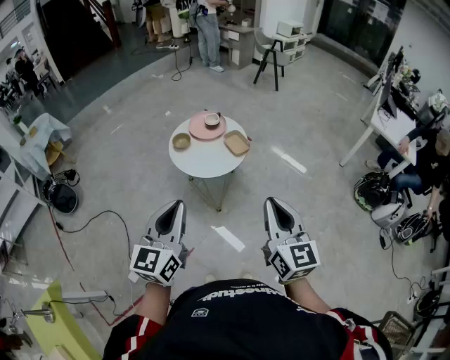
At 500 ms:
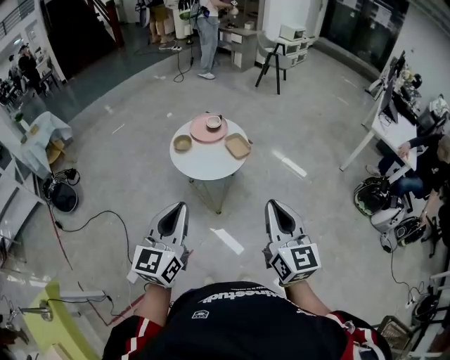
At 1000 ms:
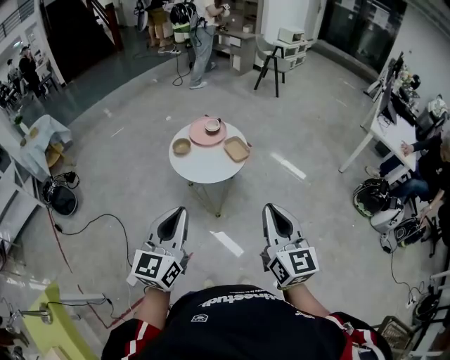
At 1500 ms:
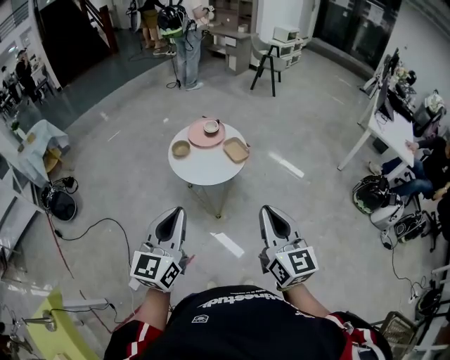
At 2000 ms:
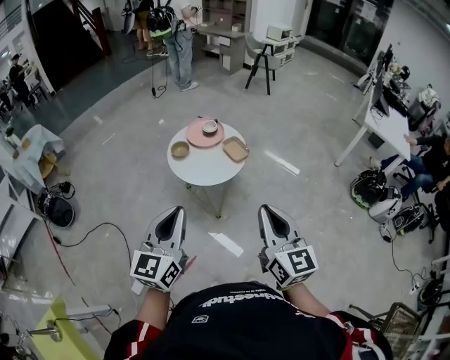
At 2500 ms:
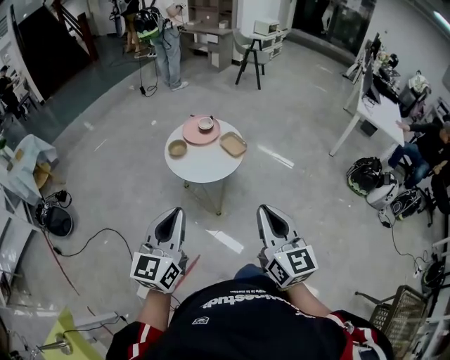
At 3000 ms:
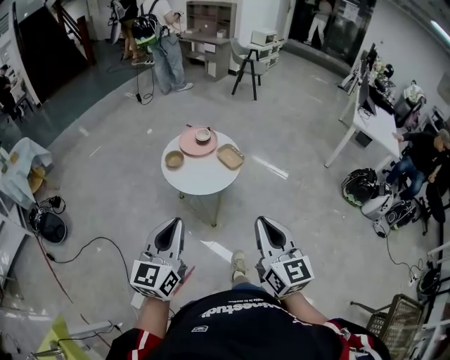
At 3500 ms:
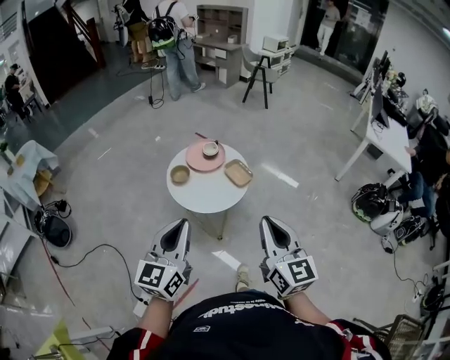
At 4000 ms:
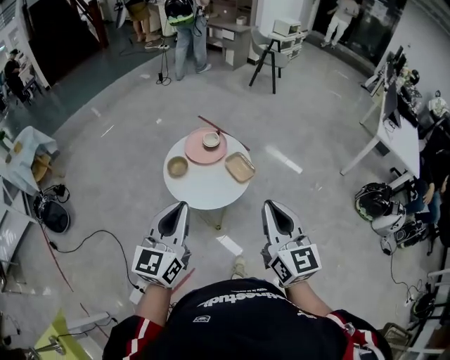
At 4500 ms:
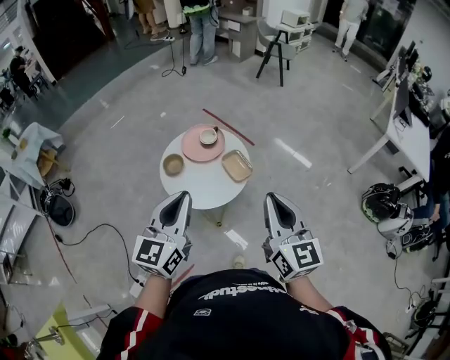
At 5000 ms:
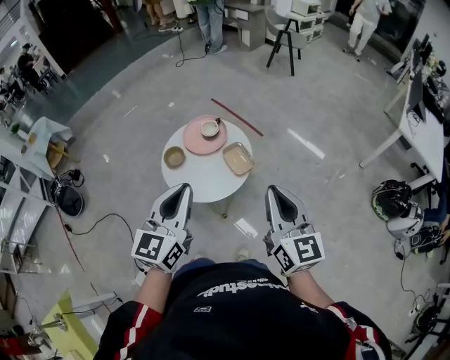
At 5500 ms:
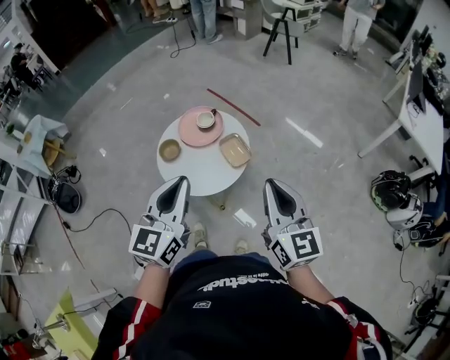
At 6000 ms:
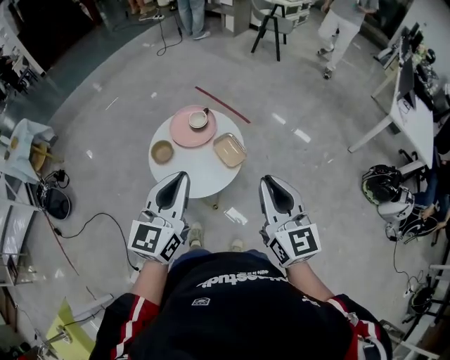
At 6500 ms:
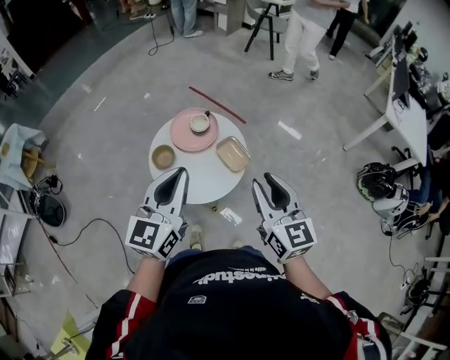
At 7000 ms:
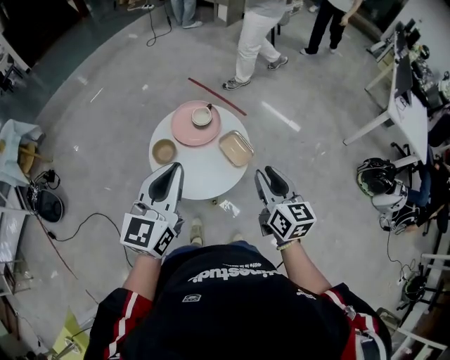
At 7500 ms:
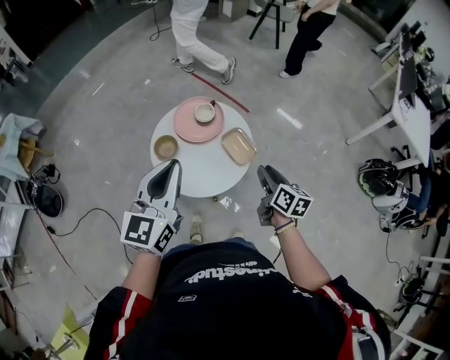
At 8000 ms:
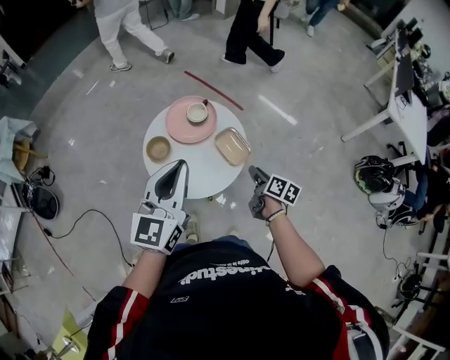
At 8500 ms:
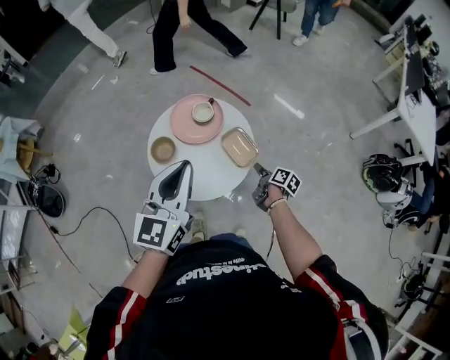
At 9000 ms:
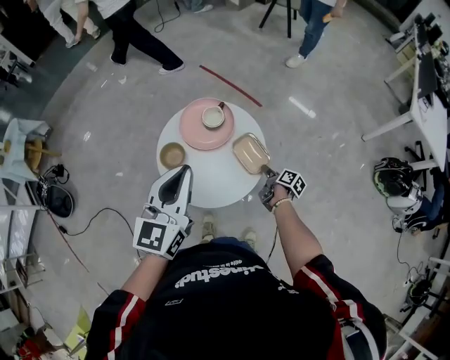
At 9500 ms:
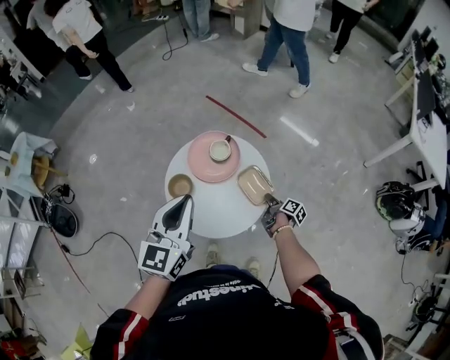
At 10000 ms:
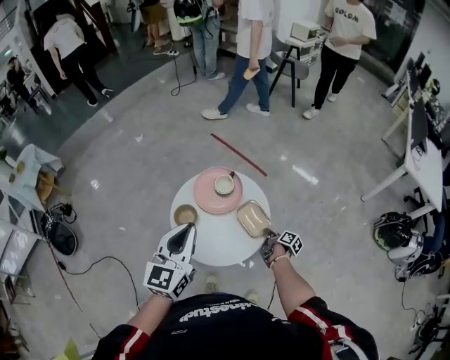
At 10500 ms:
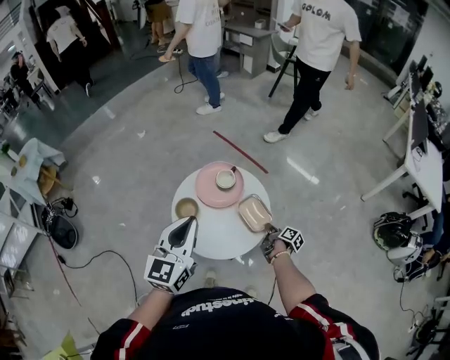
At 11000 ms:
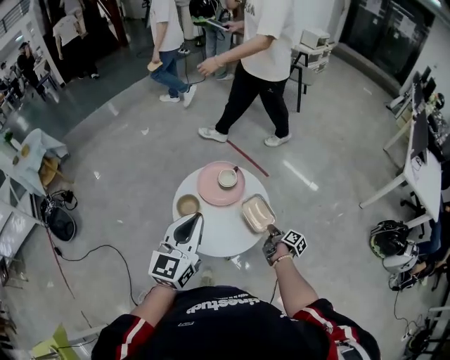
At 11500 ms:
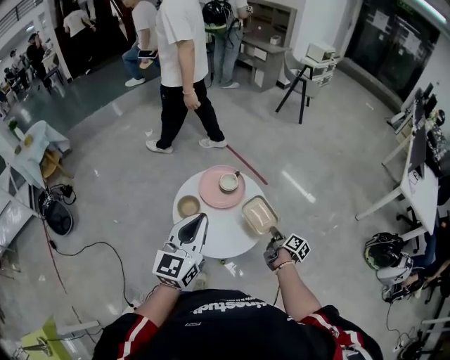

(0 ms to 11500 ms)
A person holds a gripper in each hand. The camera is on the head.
0 ms - 2000 ms: Both grippers travel together to the left, about 5 cm.
2000 ms - 4000 ms: The grippers both shift forward by roughly 20 cm.
4000 ms - 6000 ms: The two grippers go about 15 cm forward and to the right.
6000 ms - 7500 ms: The left gripper heads to the left and forward, covering approximately 15 cm; the right gripper moves downward and forward, approximately 25 cm, swivels approximately 40 degrees, and opens up.
7500 ms - 9500 ms: The left gripper travels forward by about 10 cm; the right gripper shifts approximately 25 cm downward and forward, and twists about 40 degrees clockwise, seen from behind.
9500 ms - 11500 ms: The left gripper is displaced backward and upward by about 10 cm; the right gripper travels upward and backward by some 15 cm.

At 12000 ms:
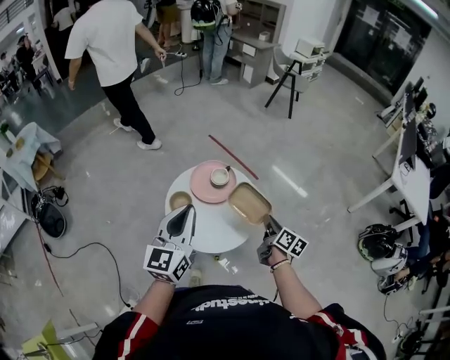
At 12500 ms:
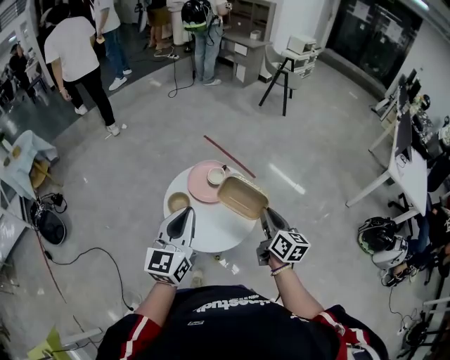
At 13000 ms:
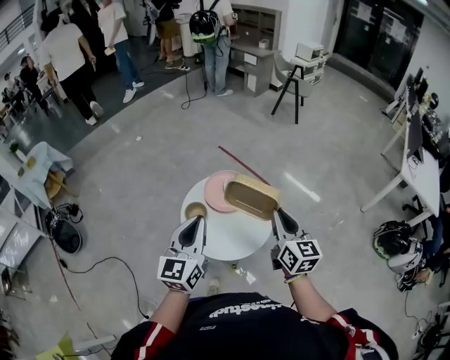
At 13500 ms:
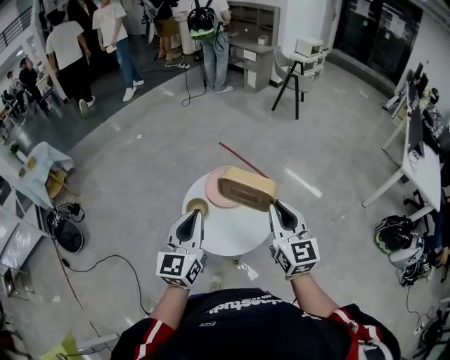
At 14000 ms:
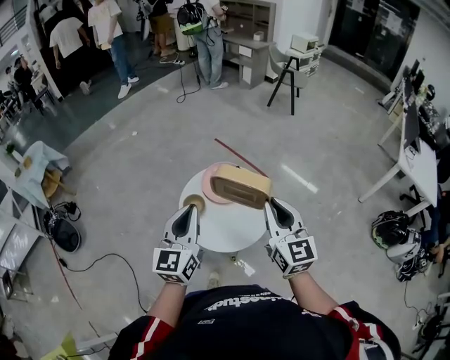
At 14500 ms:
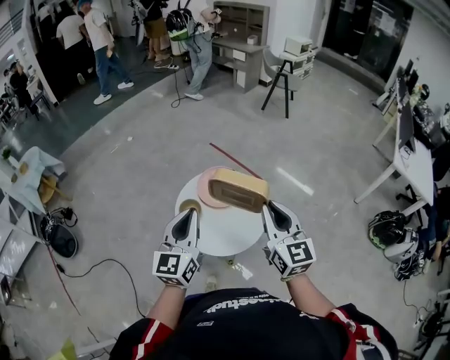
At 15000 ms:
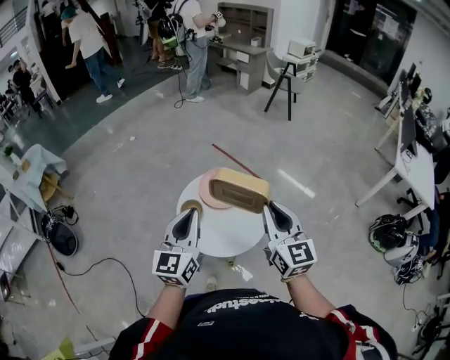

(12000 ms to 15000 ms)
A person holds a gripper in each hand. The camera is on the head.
12000 ms - 13500 ms: The right gripper moves upward and to the left, approximately 25 cm, and rolls counterclockwise, seen from behind, by roughly 50 degrees.
13500 ms - 15000 ms: Both grippers stay put.

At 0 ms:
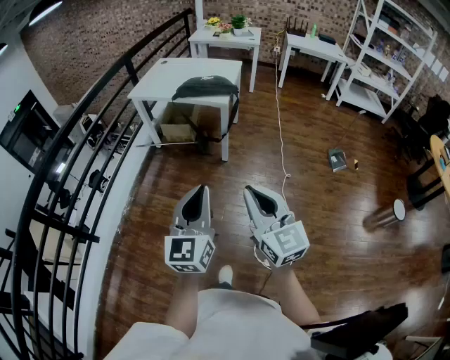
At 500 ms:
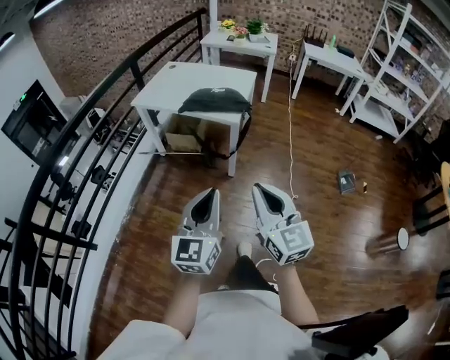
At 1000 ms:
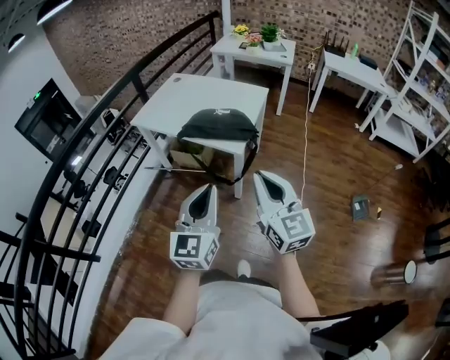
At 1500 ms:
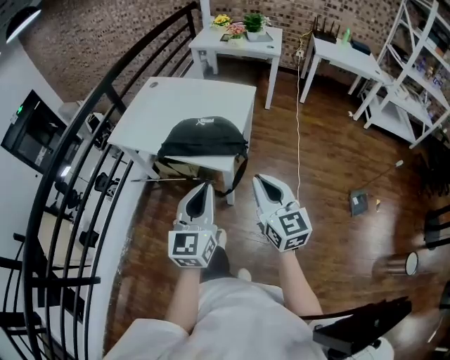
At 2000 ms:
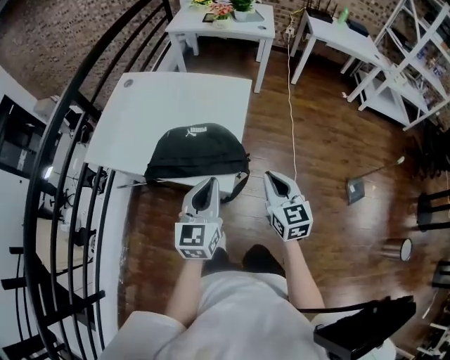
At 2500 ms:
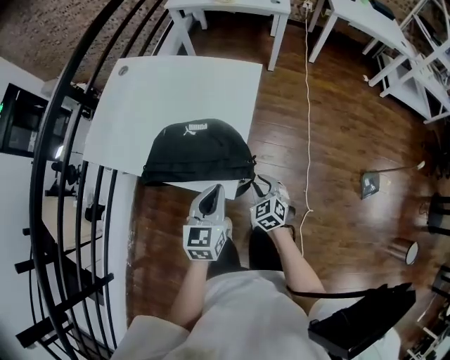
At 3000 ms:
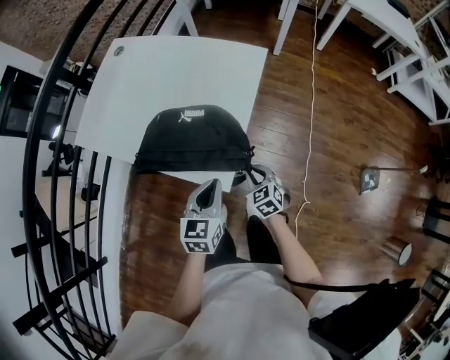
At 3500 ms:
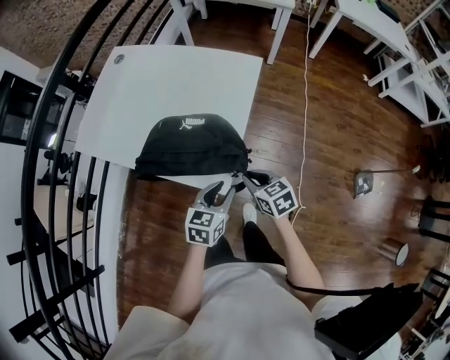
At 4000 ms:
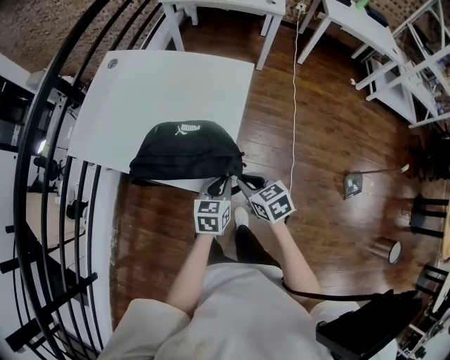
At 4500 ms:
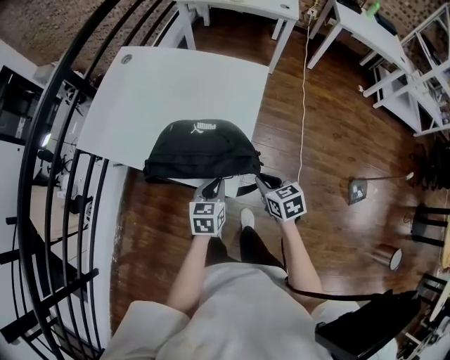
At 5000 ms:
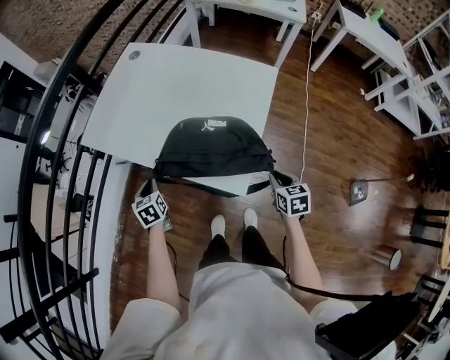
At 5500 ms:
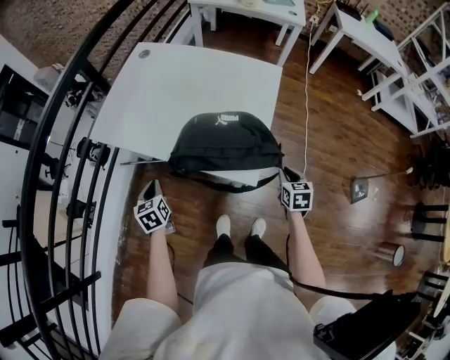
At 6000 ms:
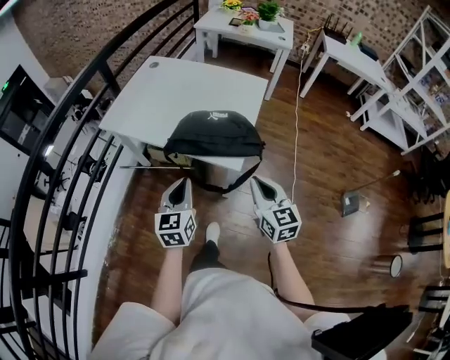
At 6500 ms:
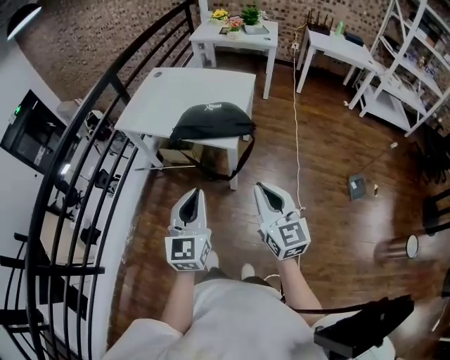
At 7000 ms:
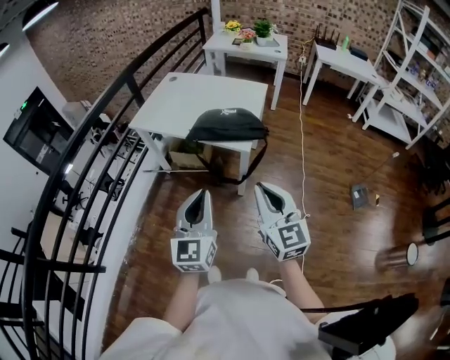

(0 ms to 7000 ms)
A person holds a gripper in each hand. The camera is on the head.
0 ms - 2000 ms: Both grippers are carried forward, approximately 70 cm. The right gripper turns by about 20 degrees.
2000 ms - 3500 ms: The grippers both shift downward by about 15 cm. The left gripper swivels roughly 30 degrees, and opens up. The right gripper rotates some 40 degrees.
3500 ms - 5000 ms: The left gripper shifts about 35 cm to the left, changes its angle by approximately 40 degrees, and closes.
5000 ms - 7000 ms: The left gripper is displaced backward and upward by some 60 cm, and points its fingers approximately 50 degrees further upward, while the right gripper shifts about 50 cm backward, upward and to the left, and points its fingers roughly 50 degrees further upward.

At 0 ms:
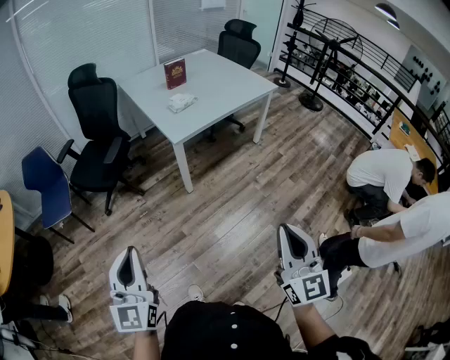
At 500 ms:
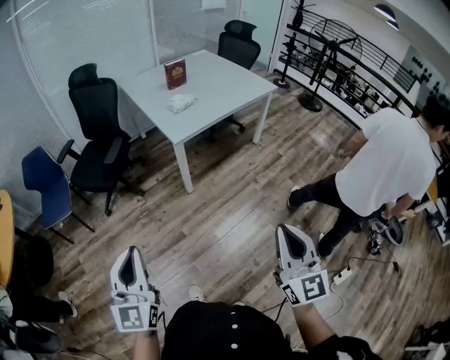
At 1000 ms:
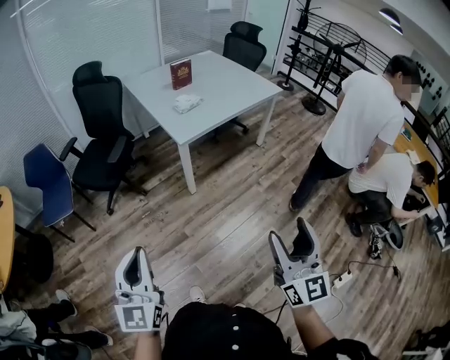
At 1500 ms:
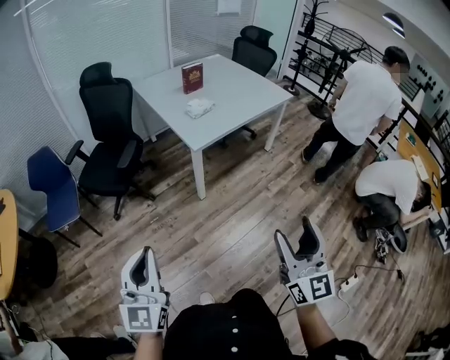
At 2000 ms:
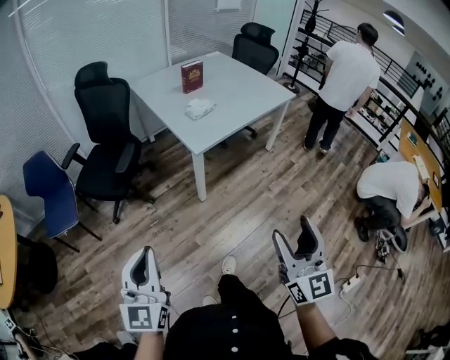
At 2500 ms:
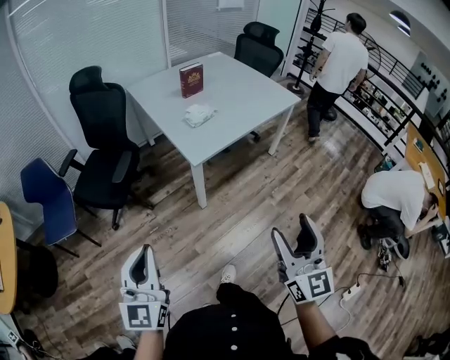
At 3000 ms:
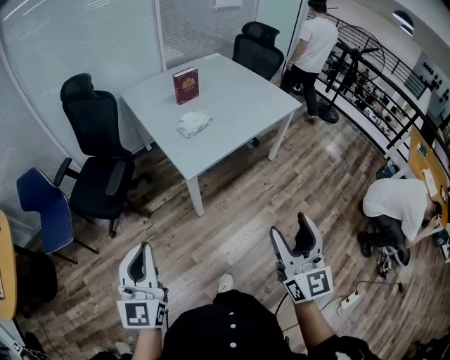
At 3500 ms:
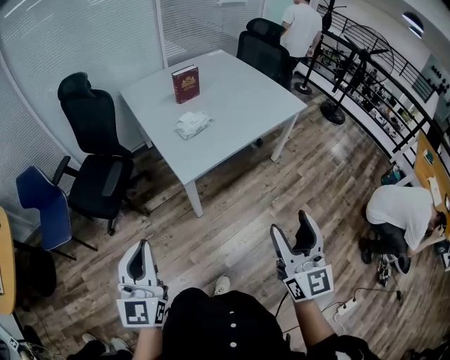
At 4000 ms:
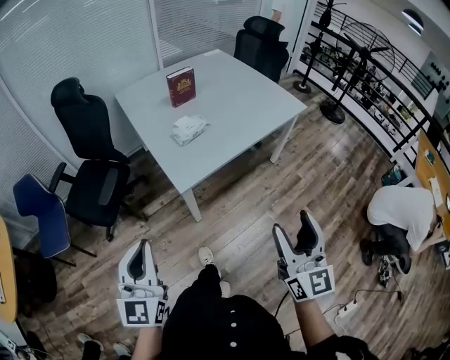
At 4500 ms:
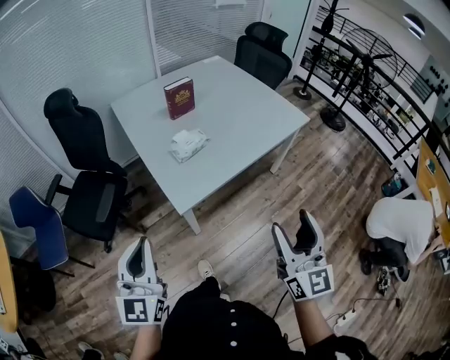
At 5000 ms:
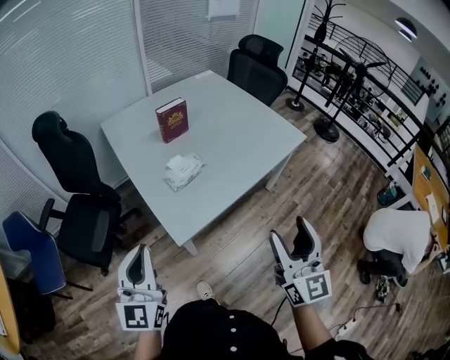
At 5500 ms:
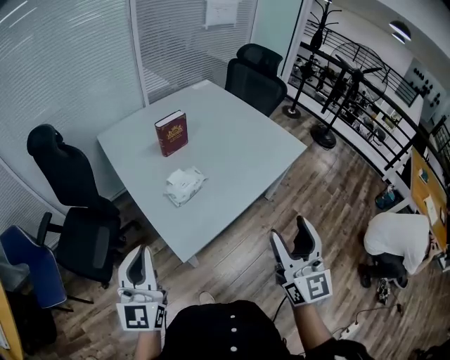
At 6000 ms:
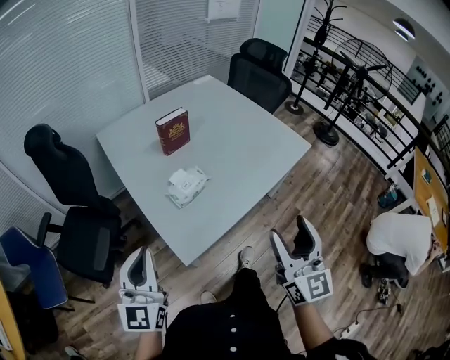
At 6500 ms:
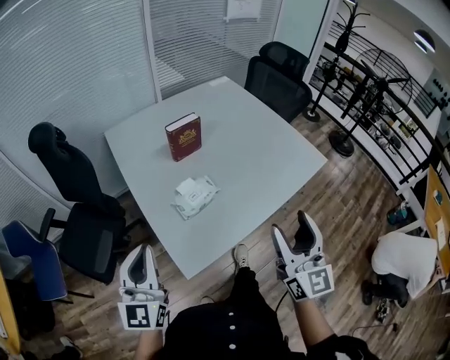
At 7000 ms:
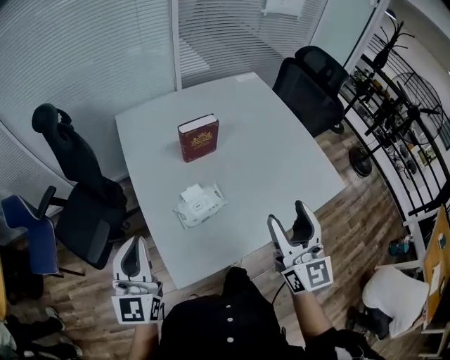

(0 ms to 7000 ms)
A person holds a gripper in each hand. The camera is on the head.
0 ms - 2000 ms: Both grippers move forward and to the left, roughly 10 cm. The right gripper opens.
2000 ms - 3500 ms: Both grippers move forward and to the right, approximately 25 cm.
3500 ms - 5000 ms: The two grippers go roughly 25 cm forward.
5000 ms - 7000 ms: Both grippers move forward, some 25 cm.
